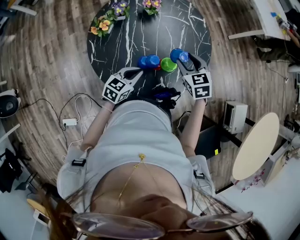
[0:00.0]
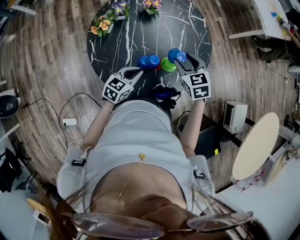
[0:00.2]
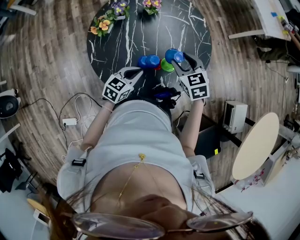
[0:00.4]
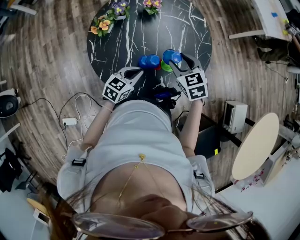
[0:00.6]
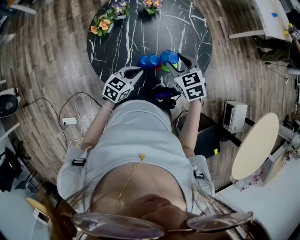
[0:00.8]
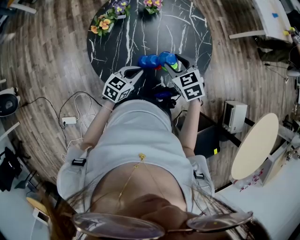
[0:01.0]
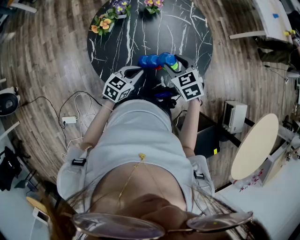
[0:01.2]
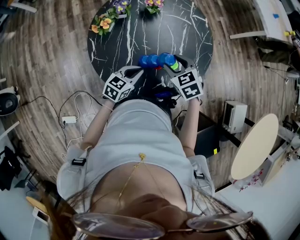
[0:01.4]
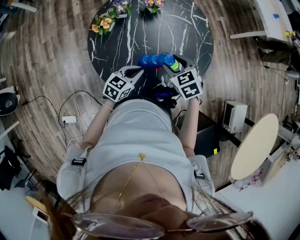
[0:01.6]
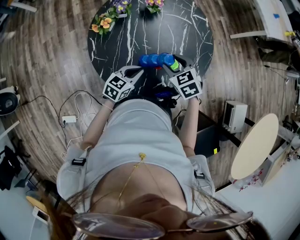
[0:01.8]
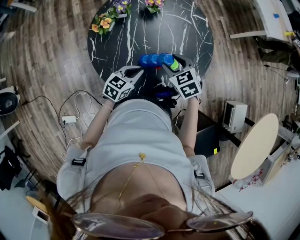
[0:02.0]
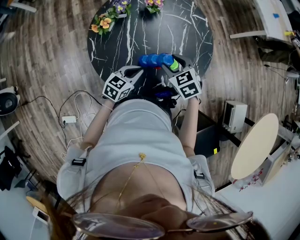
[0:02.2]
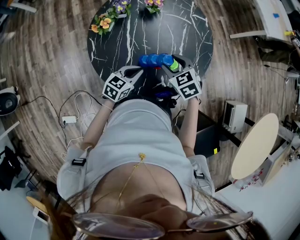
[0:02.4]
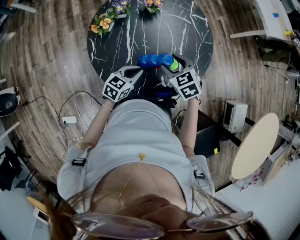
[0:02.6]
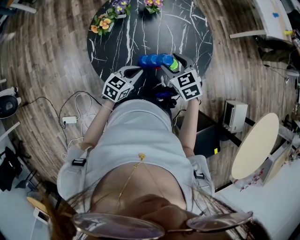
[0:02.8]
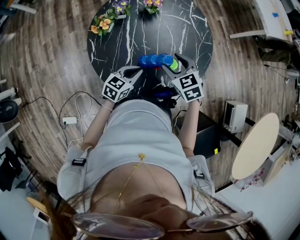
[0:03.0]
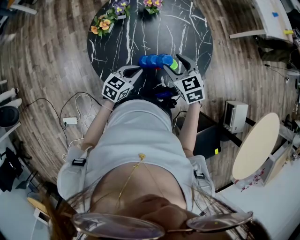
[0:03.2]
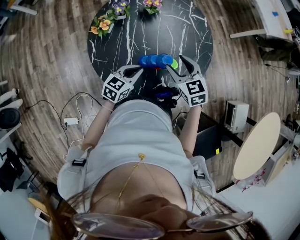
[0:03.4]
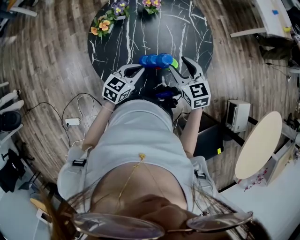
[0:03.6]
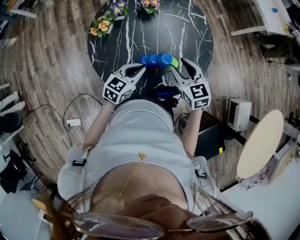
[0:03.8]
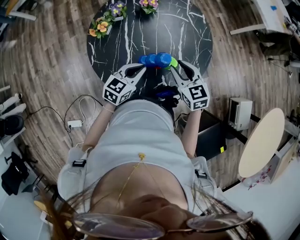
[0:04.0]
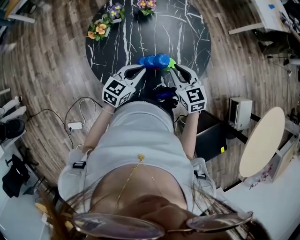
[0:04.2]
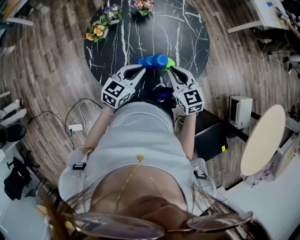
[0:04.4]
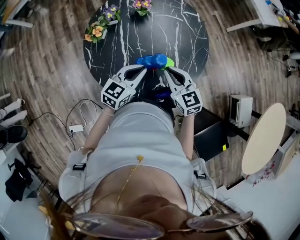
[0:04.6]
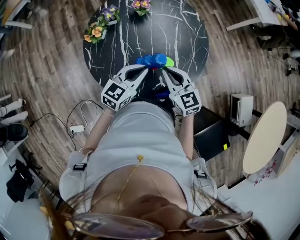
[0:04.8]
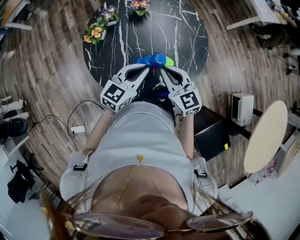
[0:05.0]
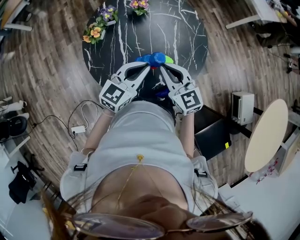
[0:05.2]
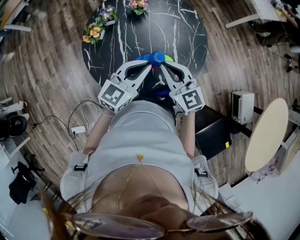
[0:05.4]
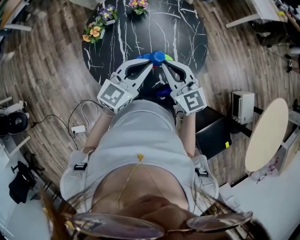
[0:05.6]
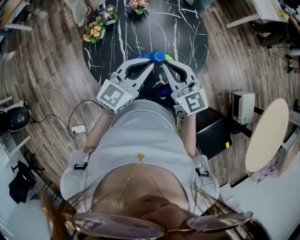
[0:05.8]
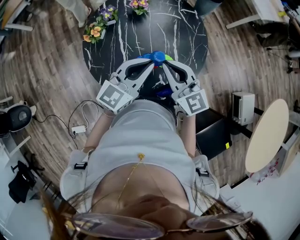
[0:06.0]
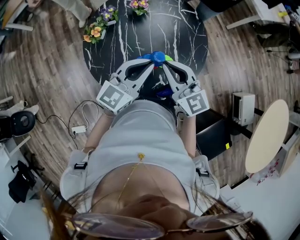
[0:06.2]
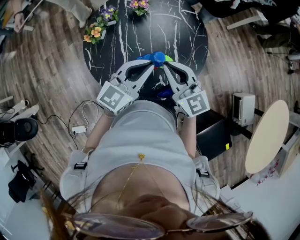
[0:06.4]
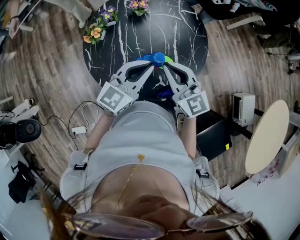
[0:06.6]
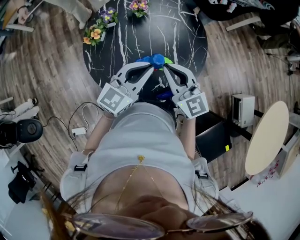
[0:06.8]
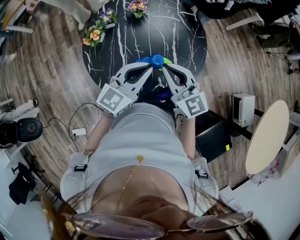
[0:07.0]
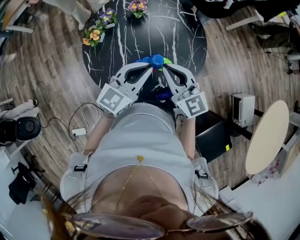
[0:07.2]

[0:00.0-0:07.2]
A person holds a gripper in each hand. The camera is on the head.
0:00.0 to 0:01.4: The right gripper goes some 5 cm to the left.
0:01.4 to 0:02.8: Neither gripper changes place.
0:02.8 to 0:04.4: The left gripper shifts about 5 cm upward. The right gripper shifts by some 5 cm, changes its angle by some 20 degrees, and closes its fingers.
0:04.4 to 0:05.8: The grippers both shift upward by about 10 cm.
0:05.8 to 0:07.2: The two grippers keep their place.

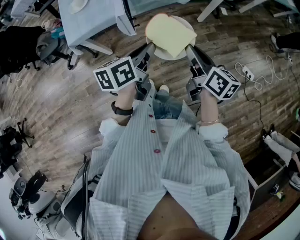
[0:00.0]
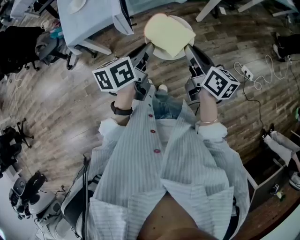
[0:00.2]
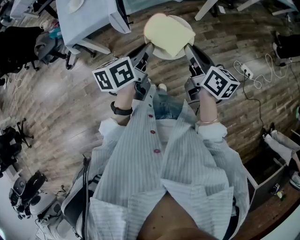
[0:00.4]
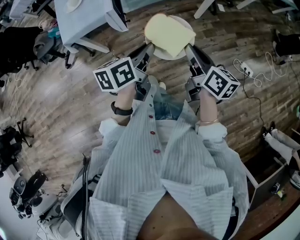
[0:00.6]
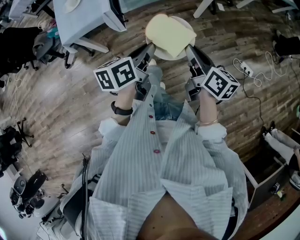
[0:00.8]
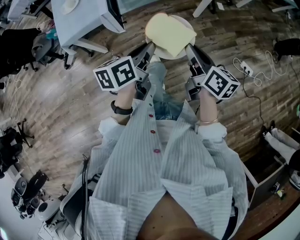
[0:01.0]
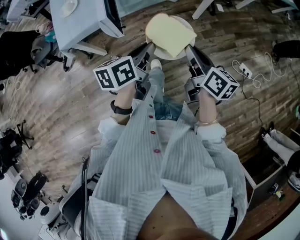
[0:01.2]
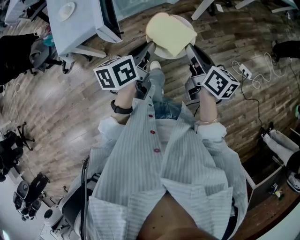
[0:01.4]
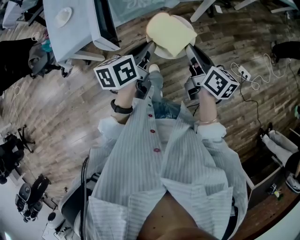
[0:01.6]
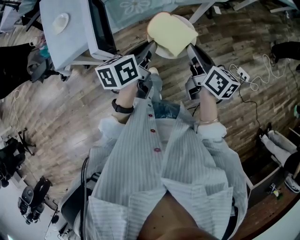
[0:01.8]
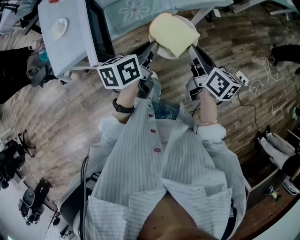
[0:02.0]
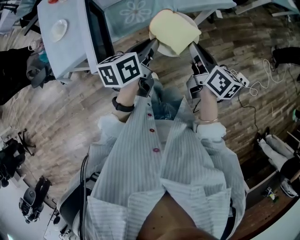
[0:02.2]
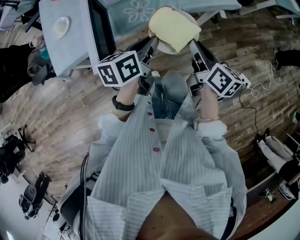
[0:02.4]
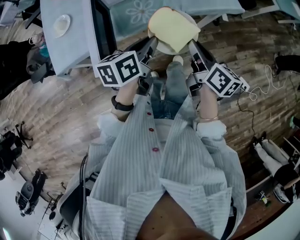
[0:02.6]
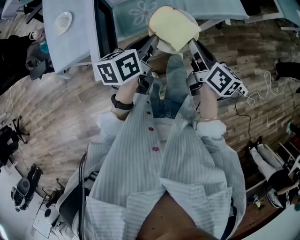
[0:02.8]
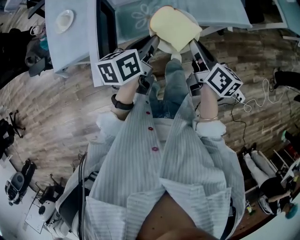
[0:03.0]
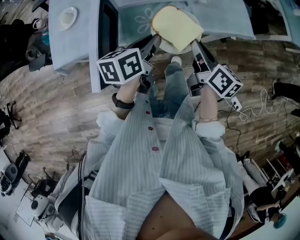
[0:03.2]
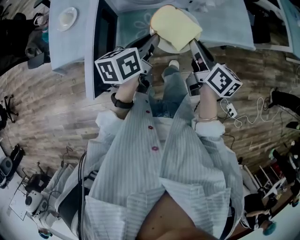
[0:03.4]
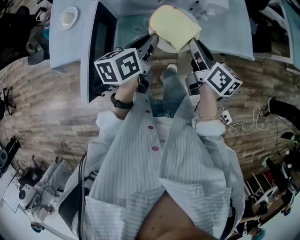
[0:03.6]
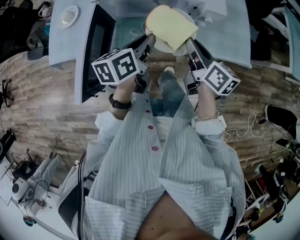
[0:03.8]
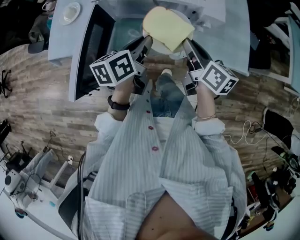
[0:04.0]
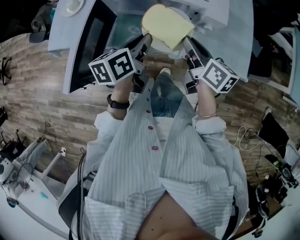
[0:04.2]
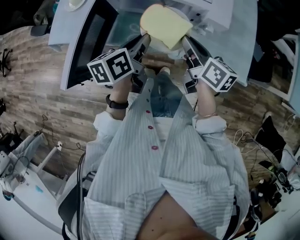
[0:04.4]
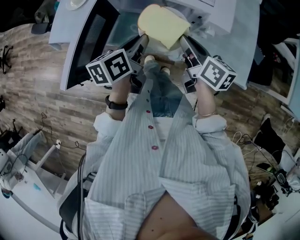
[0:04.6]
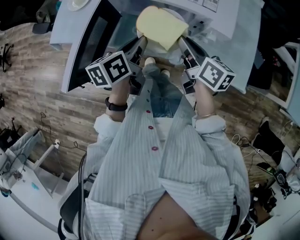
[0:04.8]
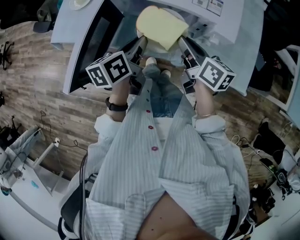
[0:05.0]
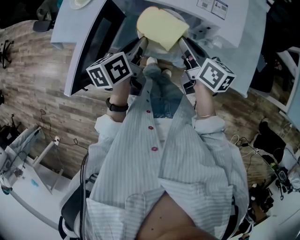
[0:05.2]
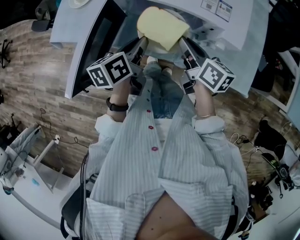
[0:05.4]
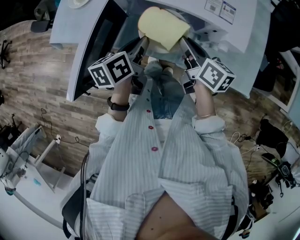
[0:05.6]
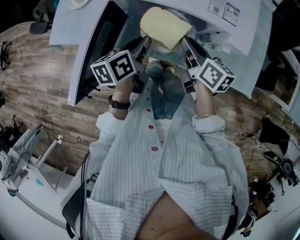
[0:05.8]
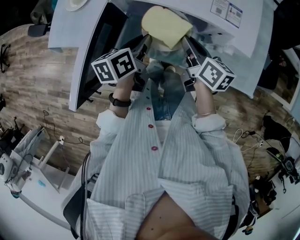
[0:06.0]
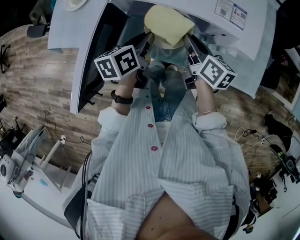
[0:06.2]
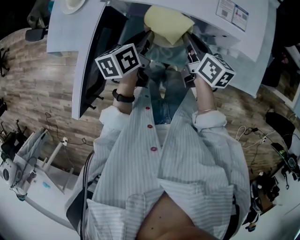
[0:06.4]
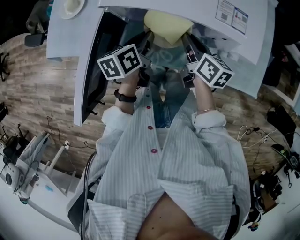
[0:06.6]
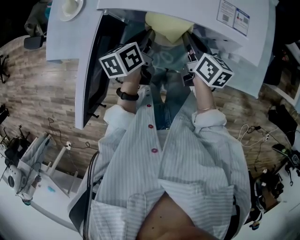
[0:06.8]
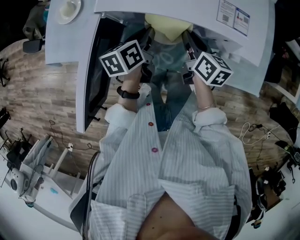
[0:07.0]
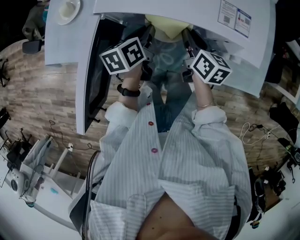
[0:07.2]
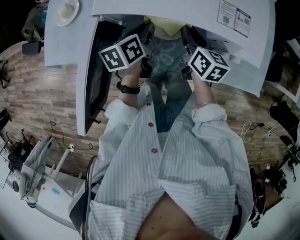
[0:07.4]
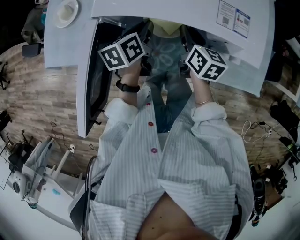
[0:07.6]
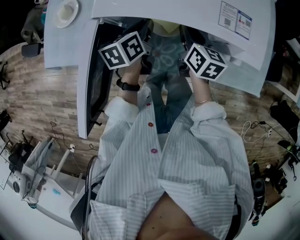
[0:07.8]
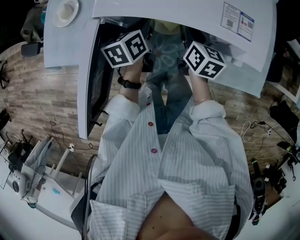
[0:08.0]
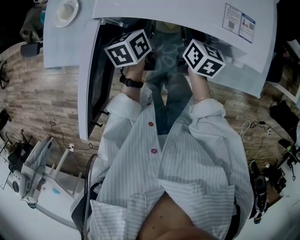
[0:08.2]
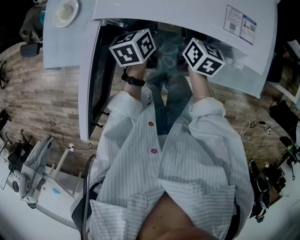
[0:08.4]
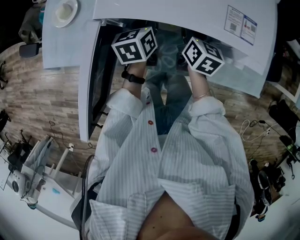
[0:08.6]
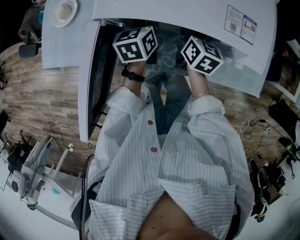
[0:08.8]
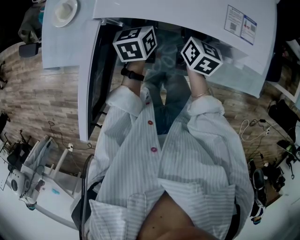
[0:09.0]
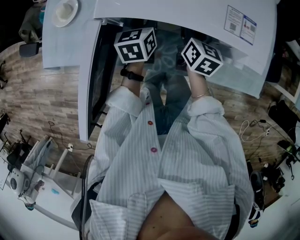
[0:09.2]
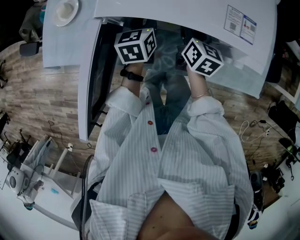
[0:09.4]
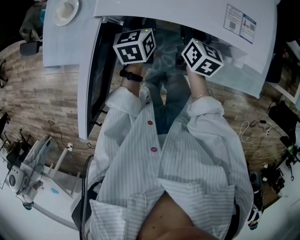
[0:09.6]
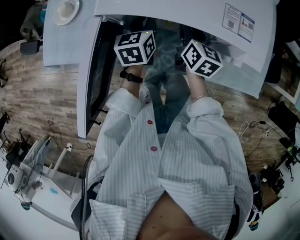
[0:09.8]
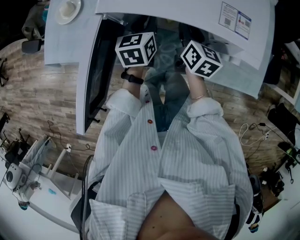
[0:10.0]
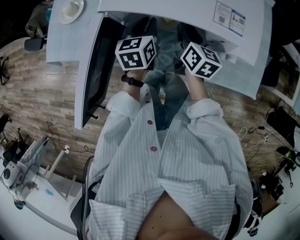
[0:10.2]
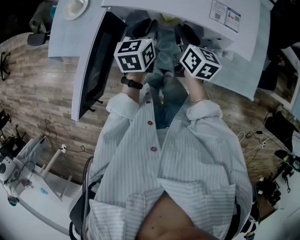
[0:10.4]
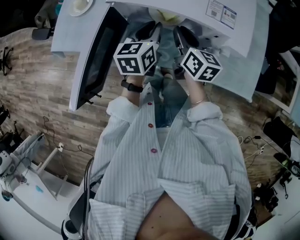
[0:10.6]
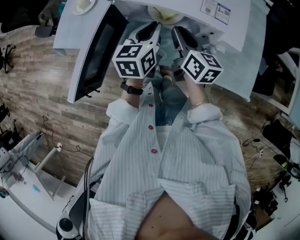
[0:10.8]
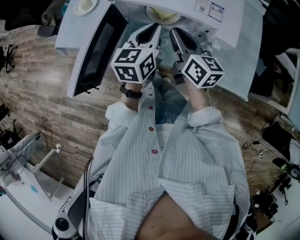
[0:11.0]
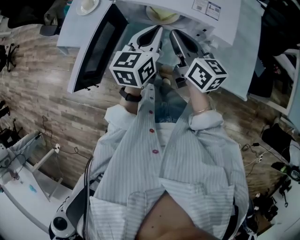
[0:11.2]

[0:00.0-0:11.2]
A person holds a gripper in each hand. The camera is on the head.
0:00.0 to 0:01.6: The grippers both shift forward and to the right by approximately 10 cm.
0:01.6 to 0:03.2: Both grippers move forward, roughly 25 cm.
0:03.2 to 0:04.8: The left gripper changes place by some 10 cm, and swivels some 30 degrees, while the right gripper moves about 15 cm, and swivels about 30 degrees.
0:04.8 to 0:06.4: Both grippers travel together downward and forward, approximately 10 cm.
0:06.4 to 0:08.0: Both grippers travel together forward, roughly 10 cm.
0:08.0 to 0:09.6: The grippers make only small movements.
0:09.6 to 0:11.2: The grippers both shift upward and backward by roughly 20 cm. The right gripper rotates some 30 degrees.

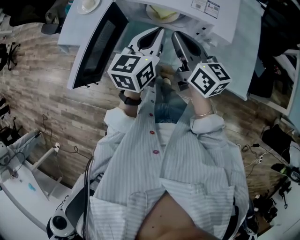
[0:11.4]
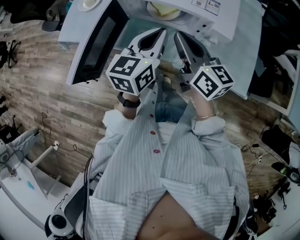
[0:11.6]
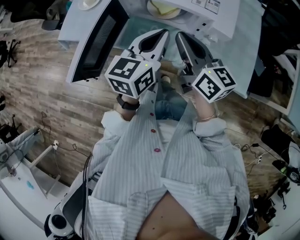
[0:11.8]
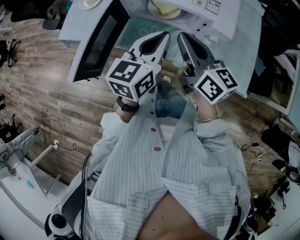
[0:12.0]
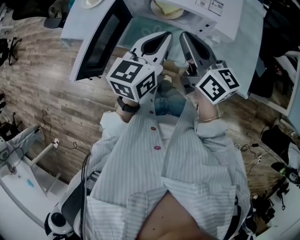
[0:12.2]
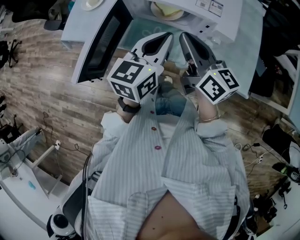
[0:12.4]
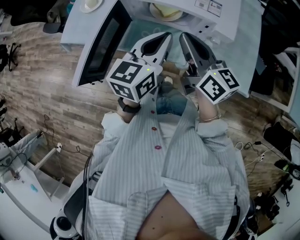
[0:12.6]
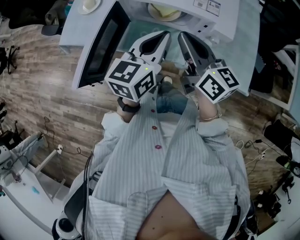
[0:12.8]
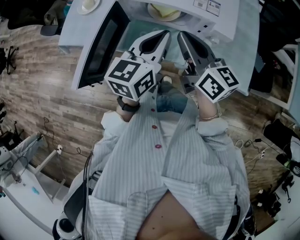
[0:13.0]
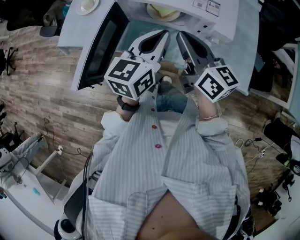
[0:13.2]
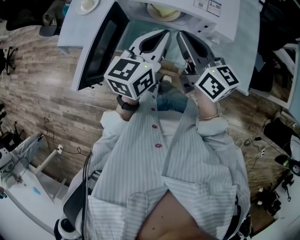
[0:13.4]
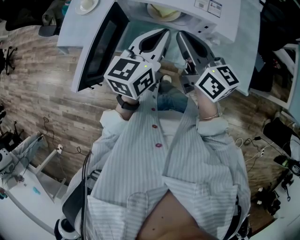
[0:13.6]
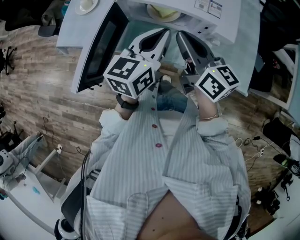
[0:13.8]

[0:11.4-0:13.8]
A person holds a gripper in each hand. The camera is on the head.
0:11.4 to 0:12.6: The left gripper moves some 5 cm.
0:12.6 to 0:13.8: The grippers move only a little.

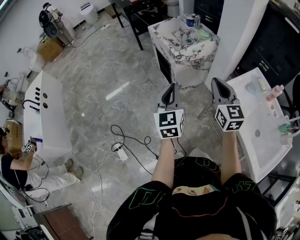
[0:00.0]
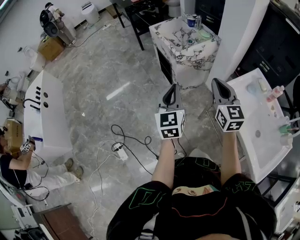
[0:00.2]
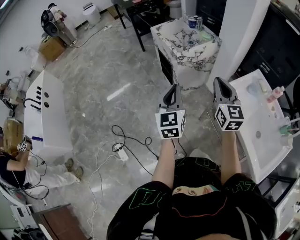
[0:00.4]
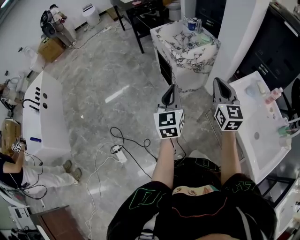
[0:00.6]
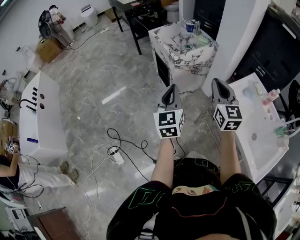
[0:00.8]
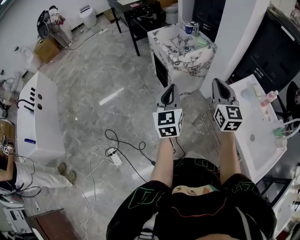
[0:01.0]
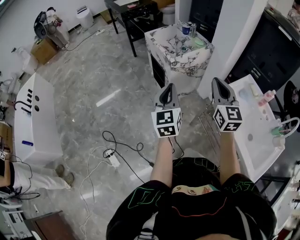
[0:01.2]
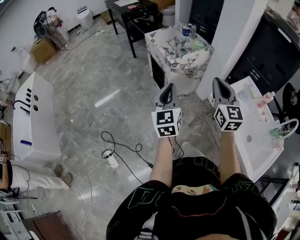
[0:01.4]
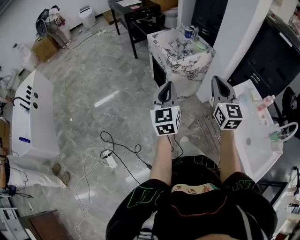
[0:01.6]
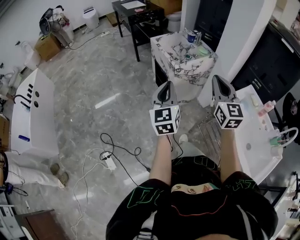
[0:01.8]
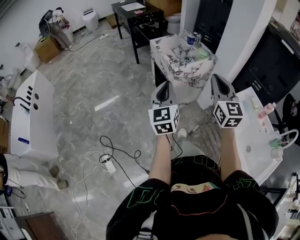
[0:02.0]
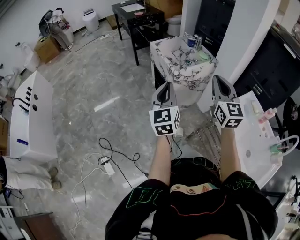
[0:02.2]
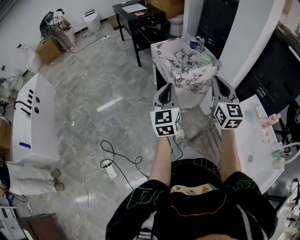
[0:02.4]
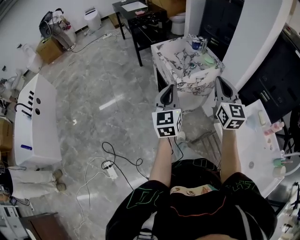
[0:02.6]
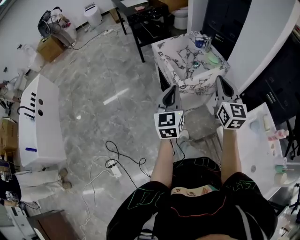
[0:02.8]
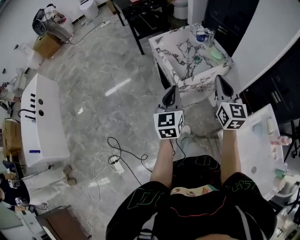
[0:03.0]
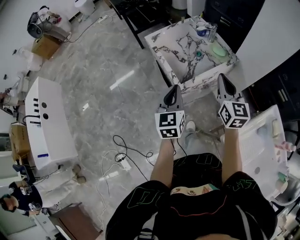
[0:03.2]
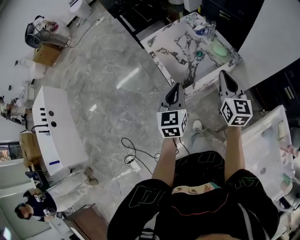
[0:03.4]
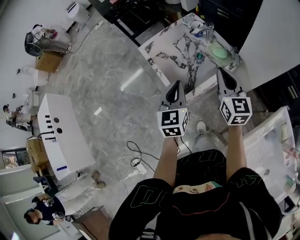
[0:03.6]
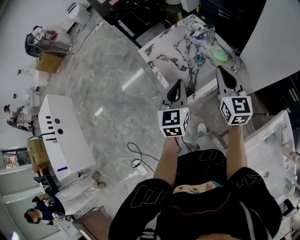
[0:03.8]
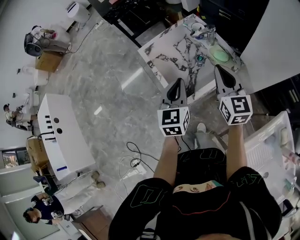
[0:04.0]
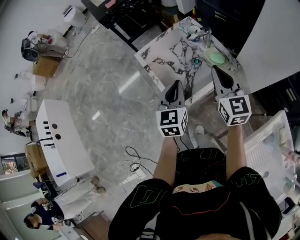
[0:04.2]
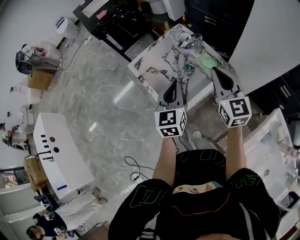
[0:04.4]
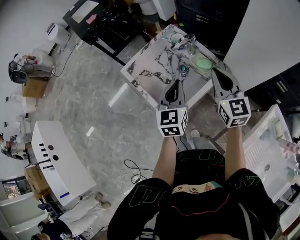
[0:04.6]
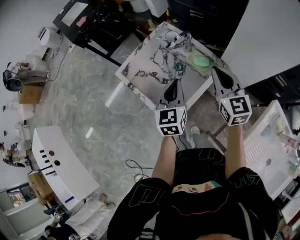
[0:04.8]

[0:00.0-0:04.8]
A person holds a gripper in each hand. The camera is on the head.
0:00.0 to 0:01.6: The right gripper shifts about 5 cm upward.
0:01.6 to 0:03.2: The two grippers go some 35 cm forward.
0:03.2 to 0:04.8: Both grippers travel together forward and to the right, about 20 cm.
